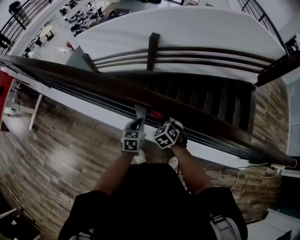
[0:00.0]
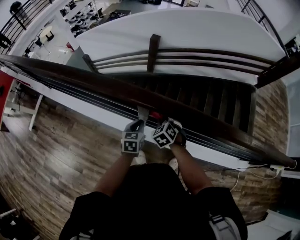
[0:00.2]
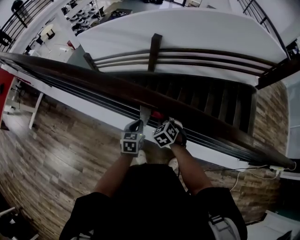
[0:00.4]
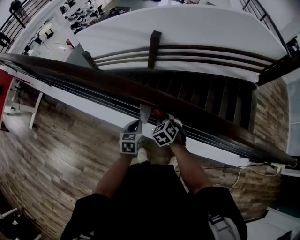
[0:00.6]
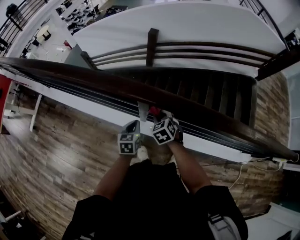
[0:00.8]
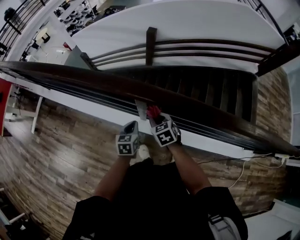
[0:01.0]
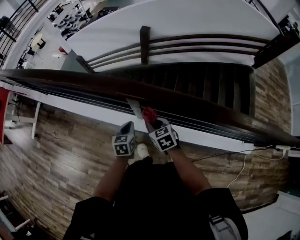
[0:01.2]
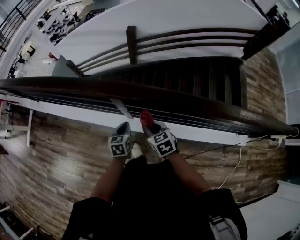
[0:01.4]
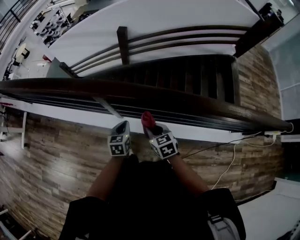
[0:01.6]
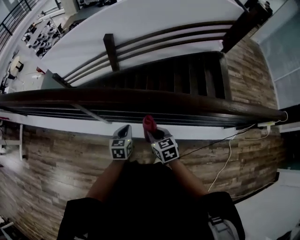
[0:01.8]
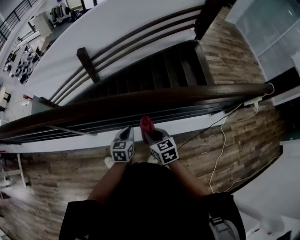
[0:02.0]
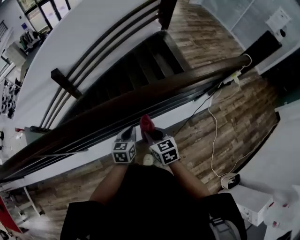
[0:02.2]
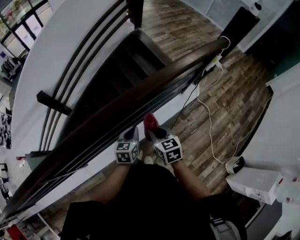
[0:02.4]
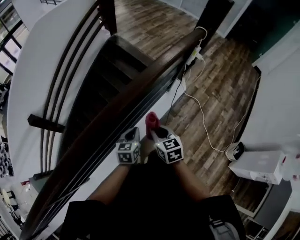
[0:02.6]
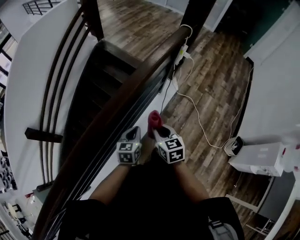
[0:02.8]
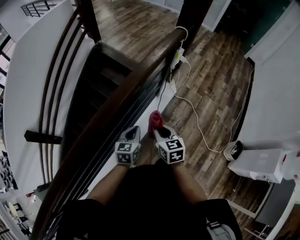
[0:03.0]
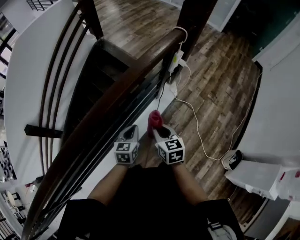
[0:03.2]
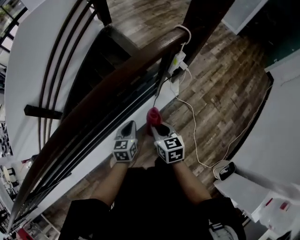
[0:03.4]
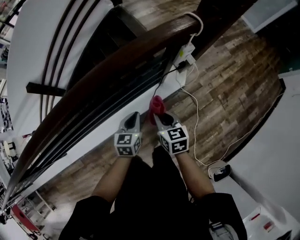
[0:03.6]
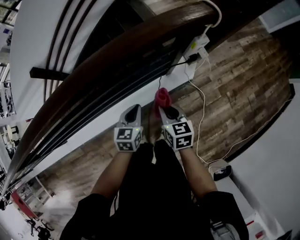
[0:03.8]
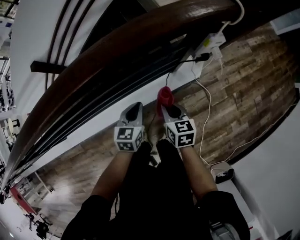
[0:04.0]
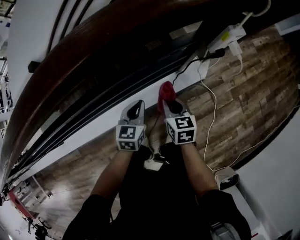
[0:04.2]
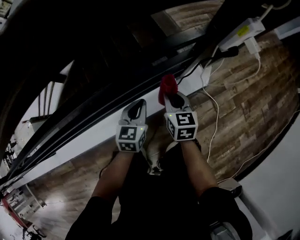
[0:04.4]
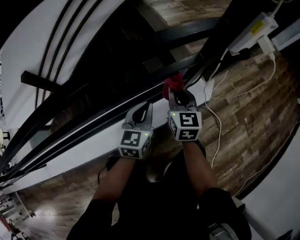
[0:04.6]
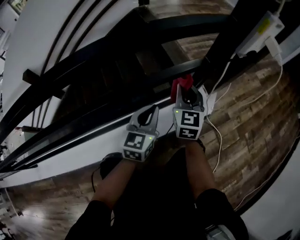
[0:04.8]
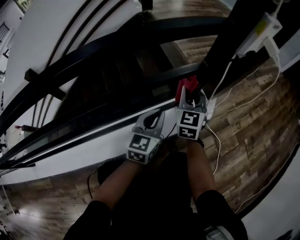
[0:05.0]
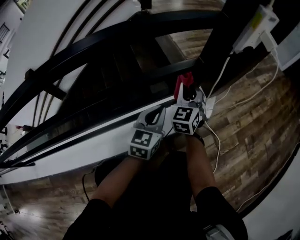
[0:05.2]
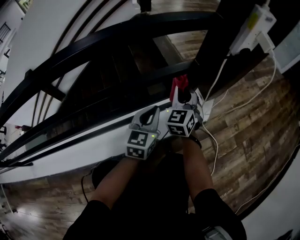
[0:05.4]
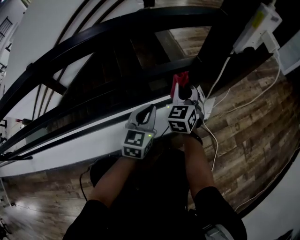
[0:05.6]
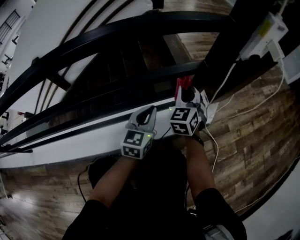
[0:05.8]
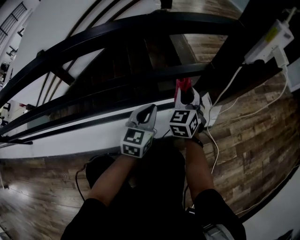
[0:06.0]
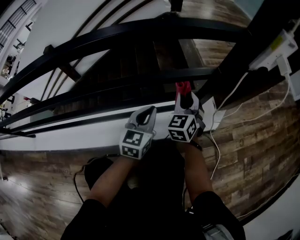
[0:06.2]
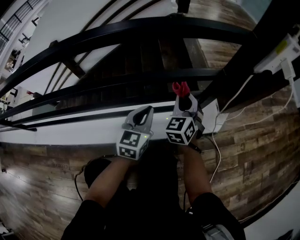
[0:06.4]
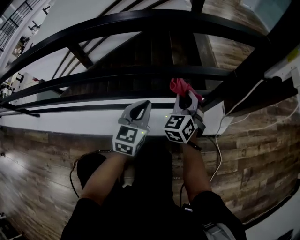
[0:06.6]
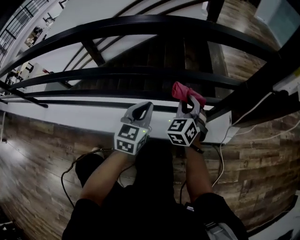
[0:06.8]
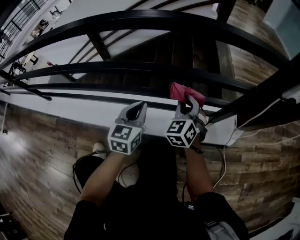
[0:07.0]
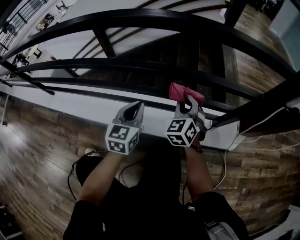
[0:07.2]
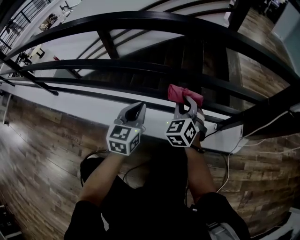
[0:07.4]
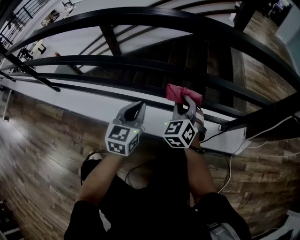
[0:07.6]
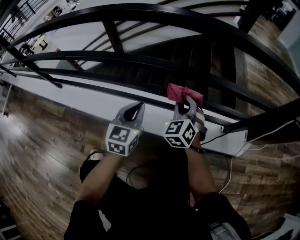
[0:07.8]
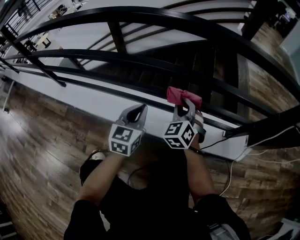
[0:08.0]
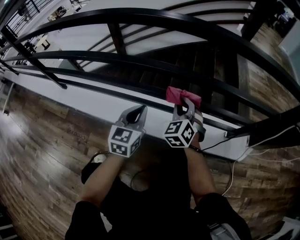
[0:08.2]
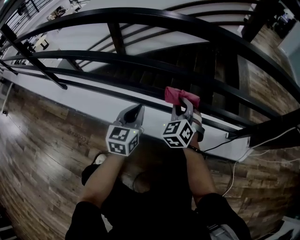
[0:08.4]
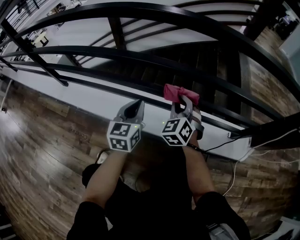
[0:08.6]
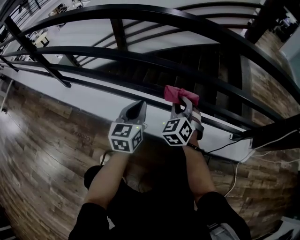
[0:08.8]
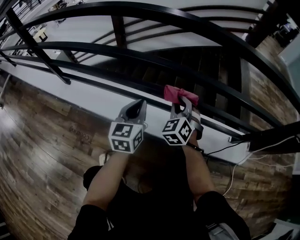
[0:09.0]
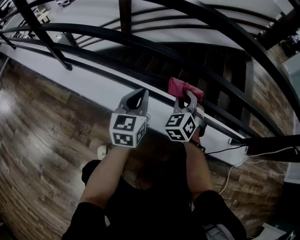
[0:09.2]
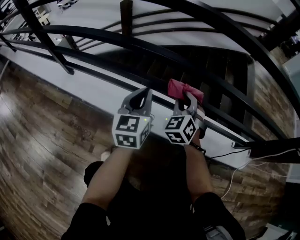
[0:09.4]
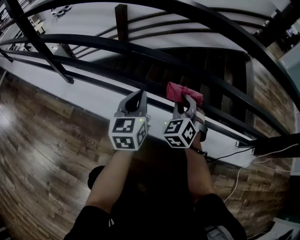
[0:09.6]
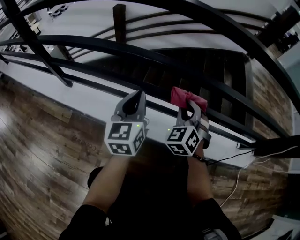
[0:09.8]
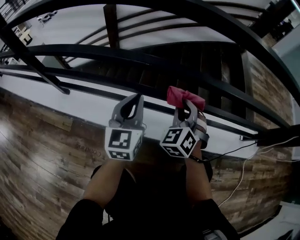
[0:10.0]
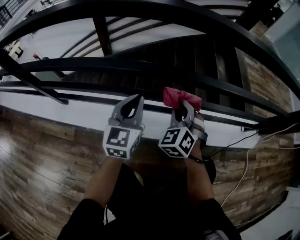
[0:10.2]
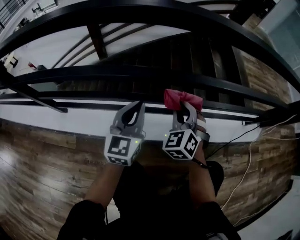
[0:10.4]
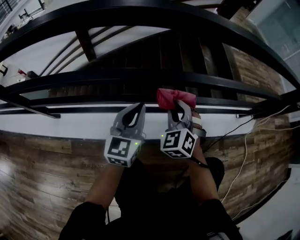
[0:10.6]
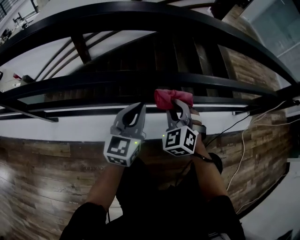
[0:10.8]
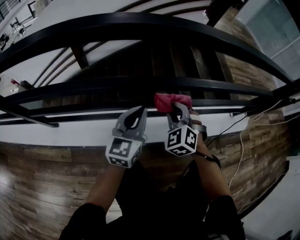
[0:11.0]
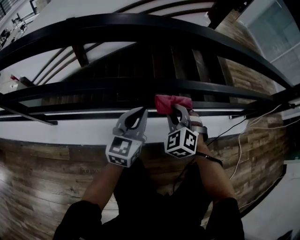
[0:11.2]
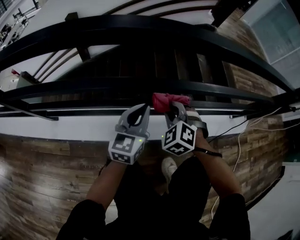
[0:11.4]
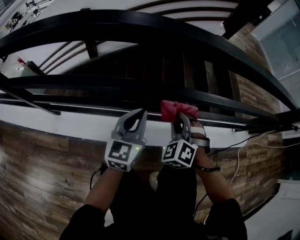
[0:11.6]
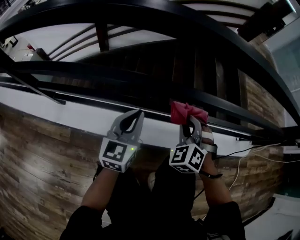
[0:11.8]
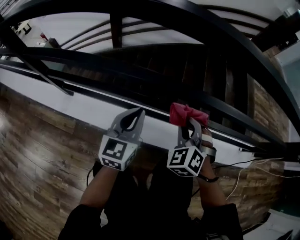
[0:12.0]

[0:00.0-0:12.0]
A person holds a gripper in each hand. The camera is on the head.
0:00.0 to 0:01.6: The right gripper shifts roughly 15 cm backward and to the right, and swivels approximately 30 degrees. Meanwhile the left gripper heads to the right and backward, covering some 10 cm.
0:01.6 to 0:03.0: The pair of grippers is taken roughly 60 cm. The right gripper rotates some 70 degrees, while the left gripper turns by some 70 degrees.
0:03.0 to 0:04.4: Both grippers travel together downward, approximately 25 cm. The left gripper changes its angle by some 30 degrees.
0:04.4 to 0:06.0: The left gripper heads downward and forward, covering roughly 10 cm. The right gripper shifts approximately 15 cm forward and downward, and swivels roughly 40 degrees.
0:06.0 to 0:07.6: The right gripper changes place by some 25 cm, and rotates some 30 degrees, while the left gripper changes place by some 25 cm, and turns by roughly 30 degrees.
0:07.6 to 0:09.0: Both grippers move to the left, about 15 cm.
0:09.0 to 0:10.4: The grippers both shift to the left by about 10 cm. The left gripper changes its angle by approximately 20 degrees.

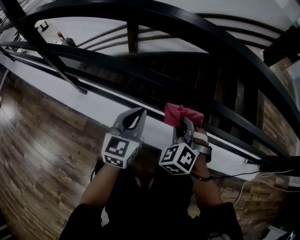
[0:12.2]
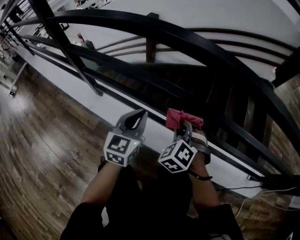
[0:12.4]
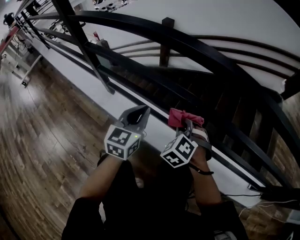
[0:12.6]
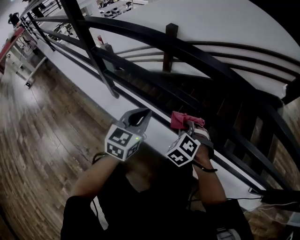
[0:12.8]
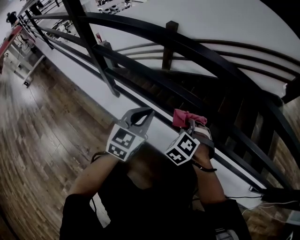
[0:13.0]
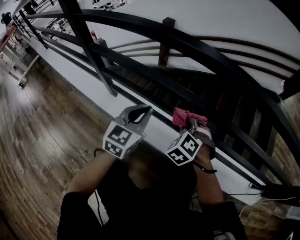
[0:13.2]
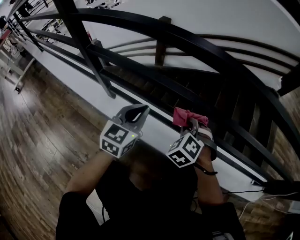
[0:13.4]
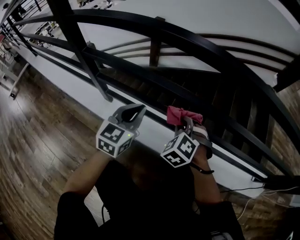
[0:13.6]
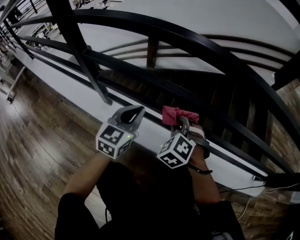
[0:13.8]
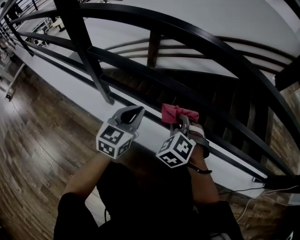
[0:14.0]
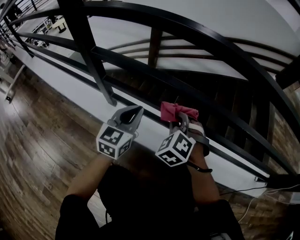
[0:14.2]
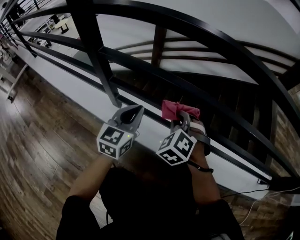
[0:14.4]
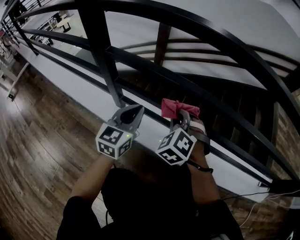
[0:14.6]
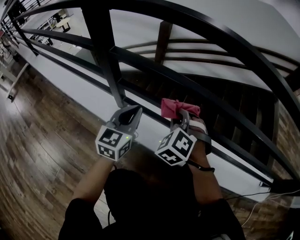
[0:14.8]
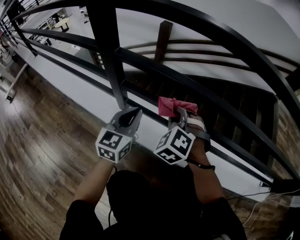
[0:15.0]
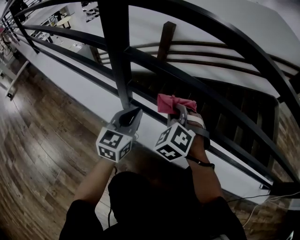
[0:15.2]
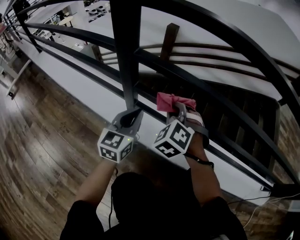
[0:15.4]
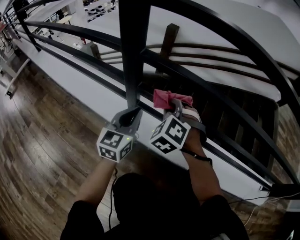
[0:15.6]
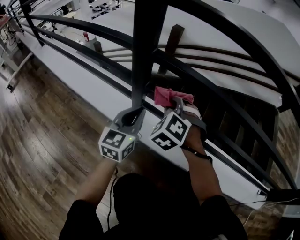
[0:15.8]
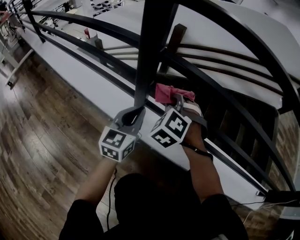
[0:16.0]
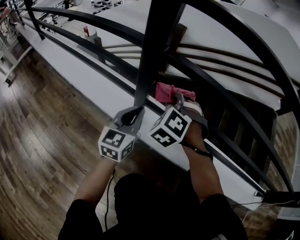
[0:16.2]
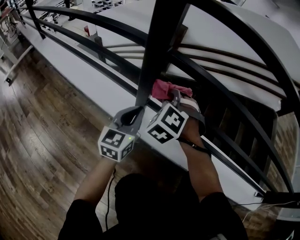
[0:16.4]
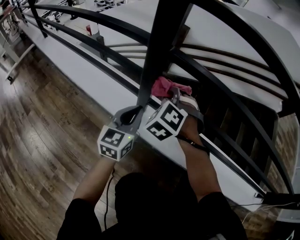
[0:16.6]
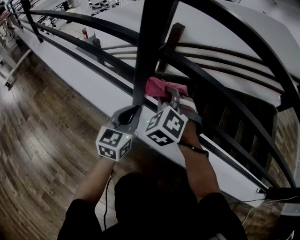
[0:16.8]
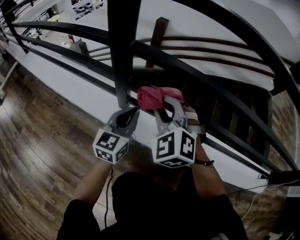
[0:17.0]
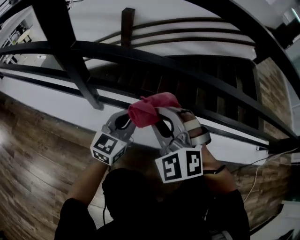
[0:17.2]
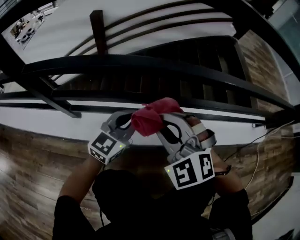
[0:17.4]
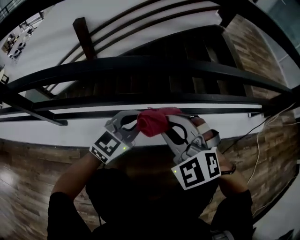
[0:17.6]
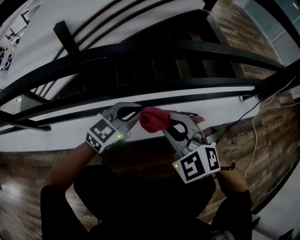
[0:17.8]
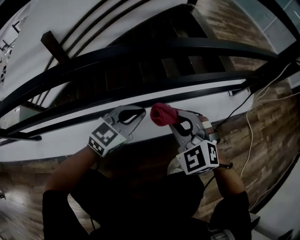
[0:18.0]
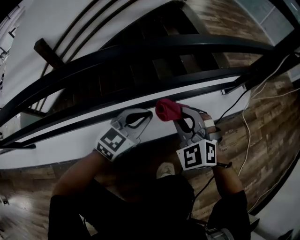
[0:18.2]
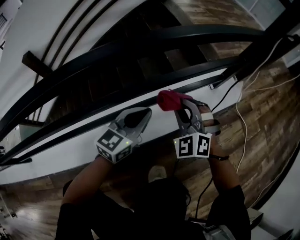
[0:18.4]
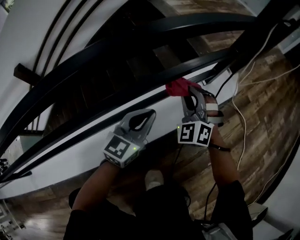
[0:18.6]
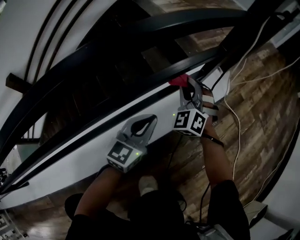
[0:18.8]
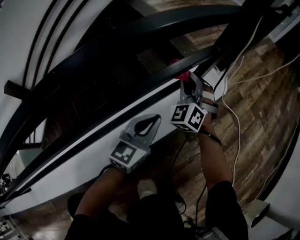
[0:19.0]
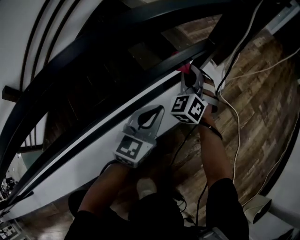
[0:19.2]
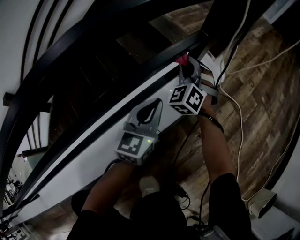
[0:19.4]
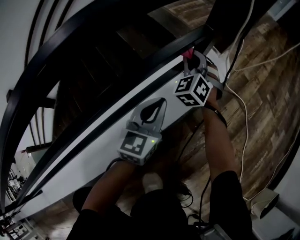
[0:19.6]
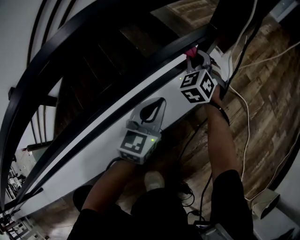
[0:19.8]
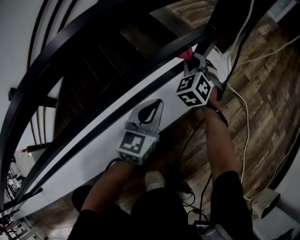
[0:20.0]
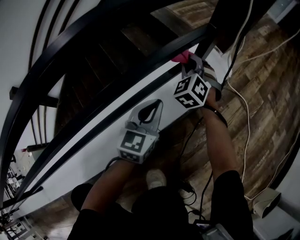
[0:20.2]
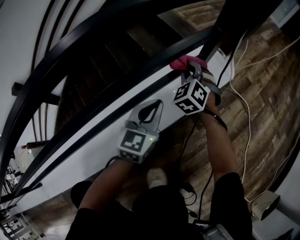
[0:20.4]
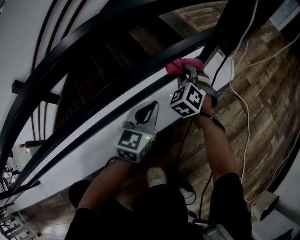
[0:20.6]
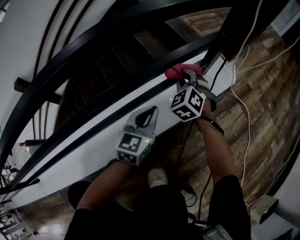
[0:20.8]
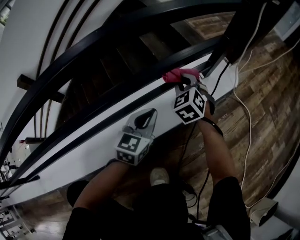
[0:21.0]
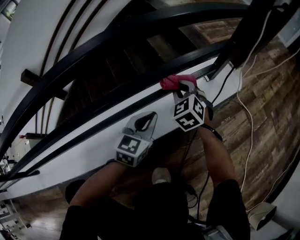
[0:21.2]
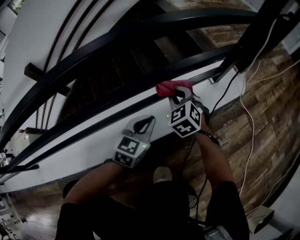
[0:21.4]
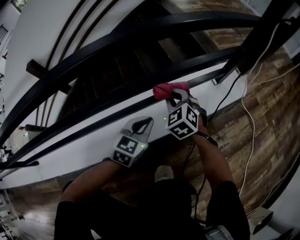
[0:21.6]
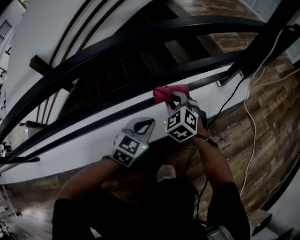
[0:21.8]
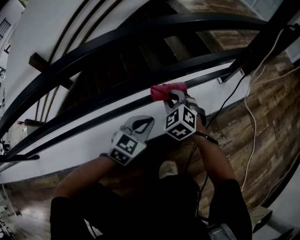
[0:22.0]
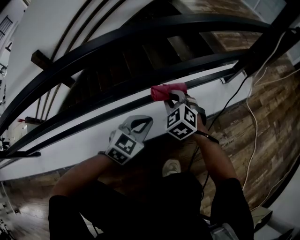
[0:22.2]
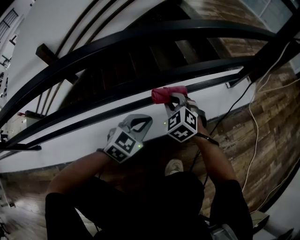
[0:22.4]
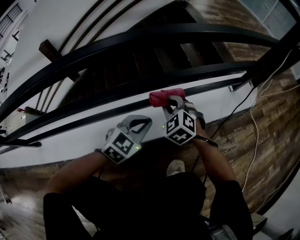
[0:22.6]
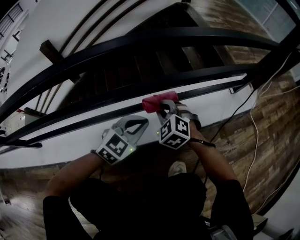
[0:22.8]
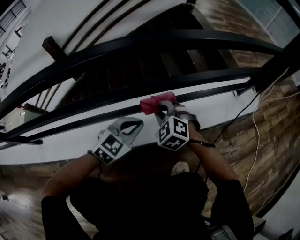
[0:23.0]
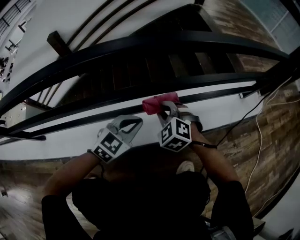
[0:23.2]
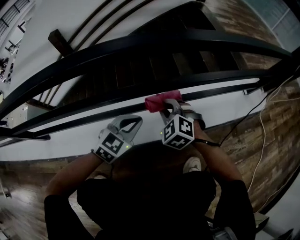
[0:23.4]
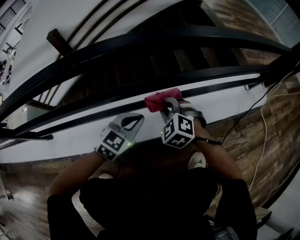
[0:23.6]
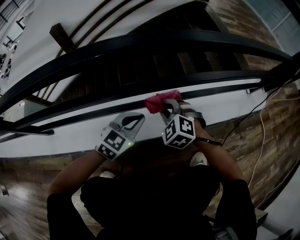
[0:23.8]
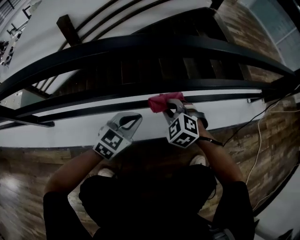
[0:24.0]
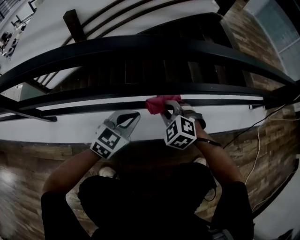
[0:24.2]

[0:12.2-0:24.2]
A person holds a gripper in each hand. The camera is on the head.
0:12.2 to 0:13.8: The two grippers go roughly 15 cm to the left.
0:13.8 to 0:15.2: Both grippers travel together to the left, about 15 cm.
0:15.2 to 0:16.6: The right gripper goes approximately 10 cm to the left. Meanwhile the left gripper moves to the left, roughly 5 cm.
0:16.6 to 0:18.2: The pair of grippers is taken approximately 70 cm. The left gripper changes its angle by some 70 degrees, while the right gripper turns by some 30 degrees.
0:18.2 to 0:19.8: The left gripper changes place by some 25 cm; the right gripper ends up about 40 cm from where it was, and turns by about 50 degrees.
0:19.8 to 0:21.2: The right gripper is displaced backward and to the left by about 20 cm, and swivels about 30 degrees. Meanwhile the left gripper goes roughly 10 cm backward and to the left.
0:21.2 to 0:22.6: The two grippers go some 20 cm to the left and backward. The right gripper changes its angle by some 20 degrees.
0:22.6 to 0:24.2: The left gripper shifts roughly 25 cm to the left, while the right gripper is displaced to the left and backward by about 25 cm, and rotates roughly 20 degrees.
